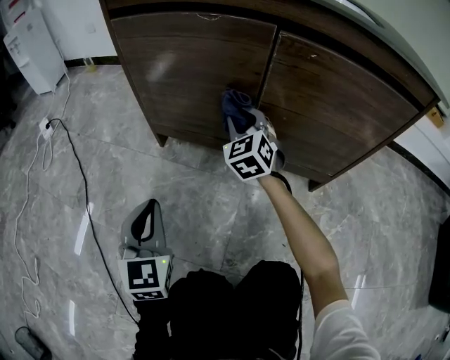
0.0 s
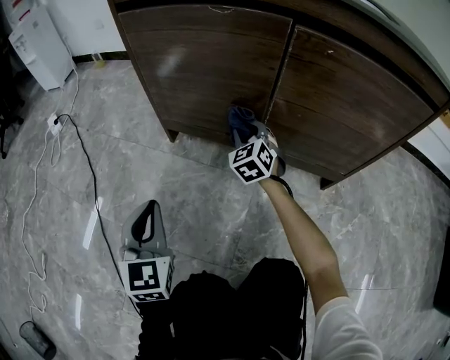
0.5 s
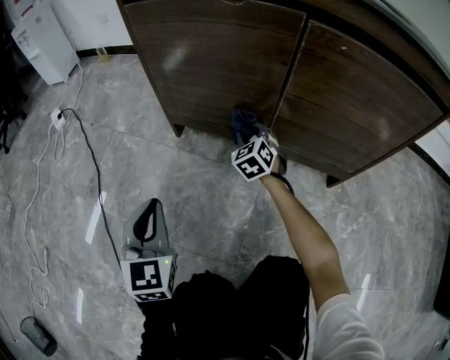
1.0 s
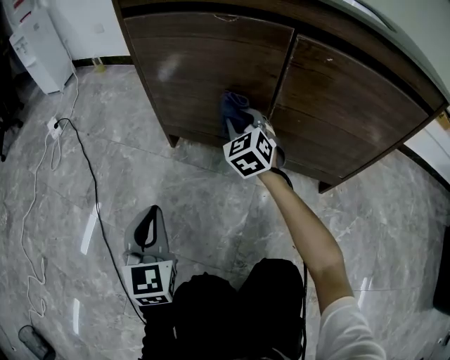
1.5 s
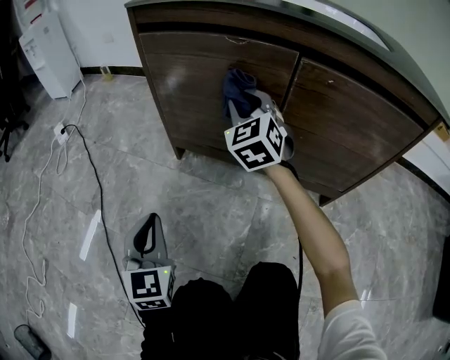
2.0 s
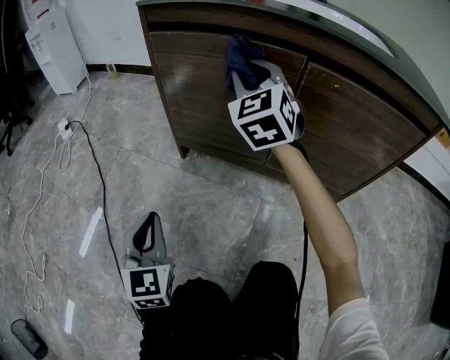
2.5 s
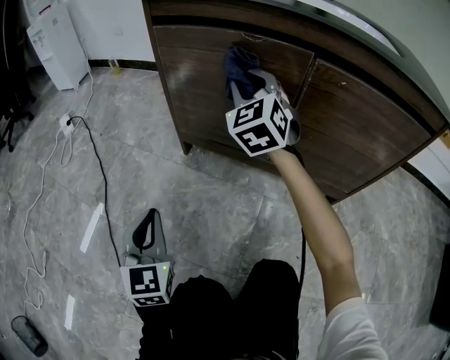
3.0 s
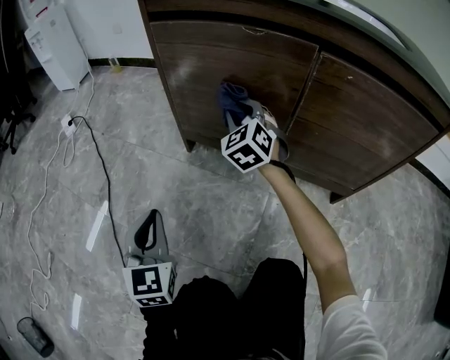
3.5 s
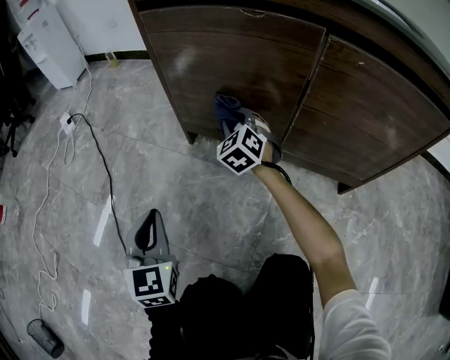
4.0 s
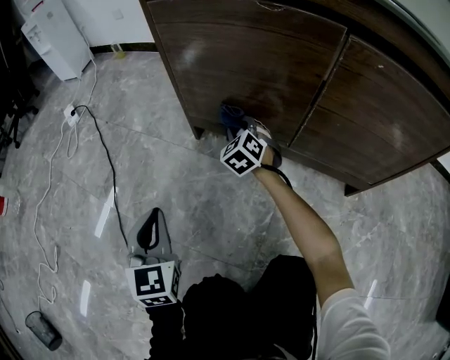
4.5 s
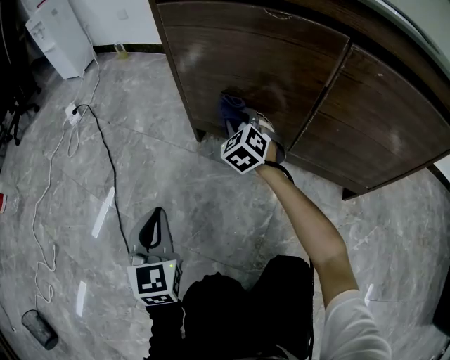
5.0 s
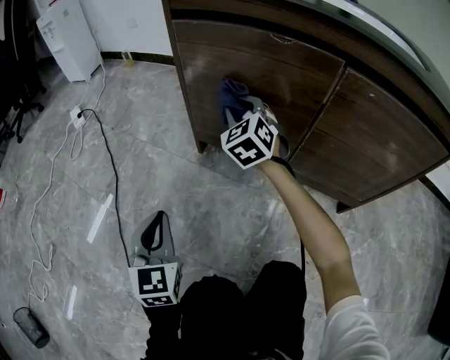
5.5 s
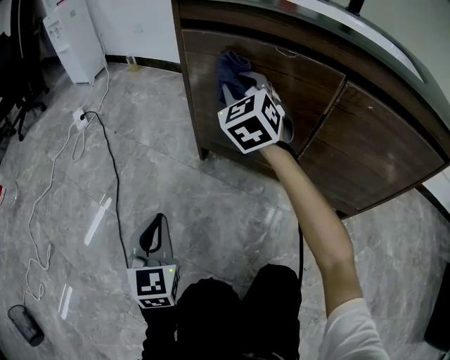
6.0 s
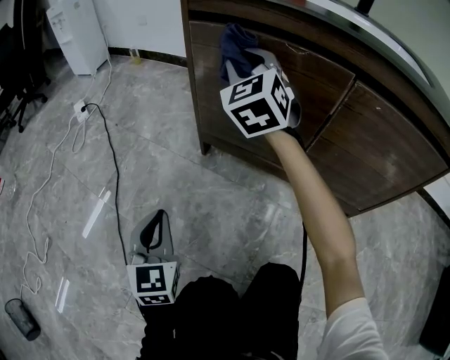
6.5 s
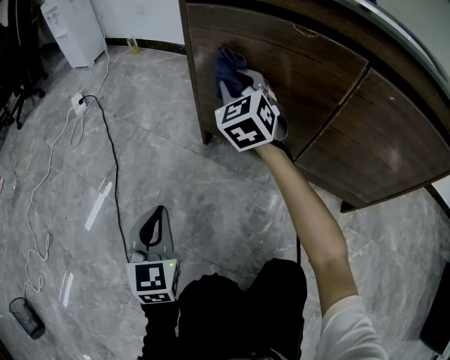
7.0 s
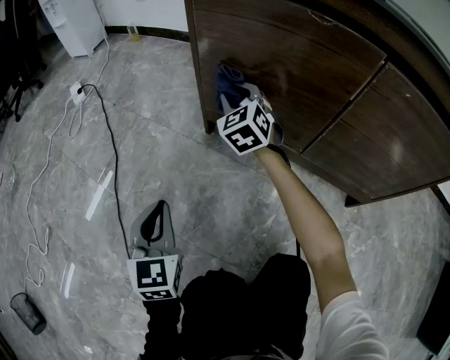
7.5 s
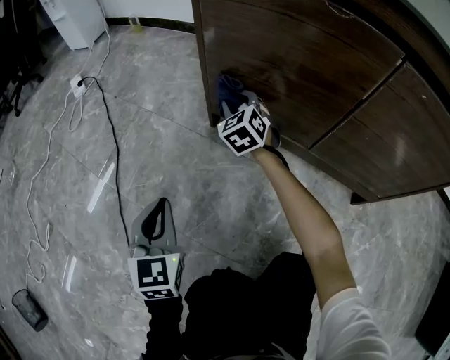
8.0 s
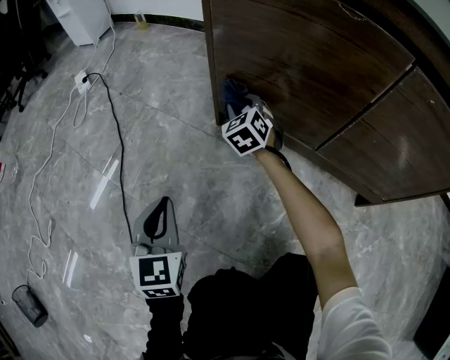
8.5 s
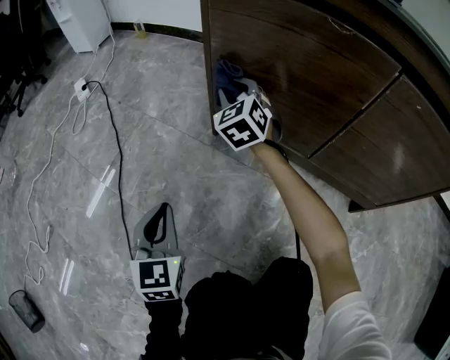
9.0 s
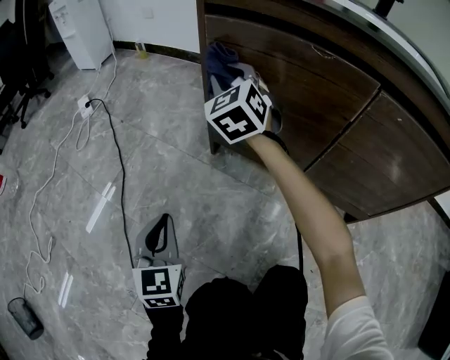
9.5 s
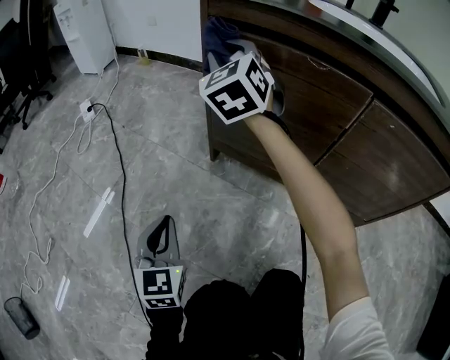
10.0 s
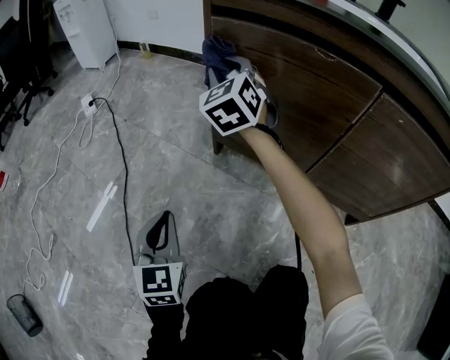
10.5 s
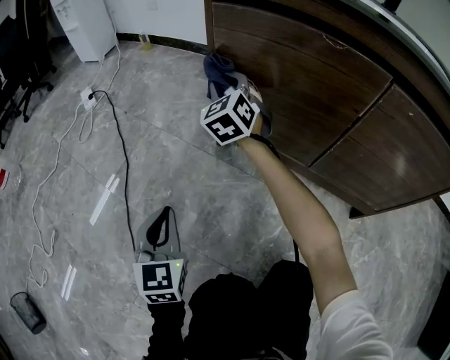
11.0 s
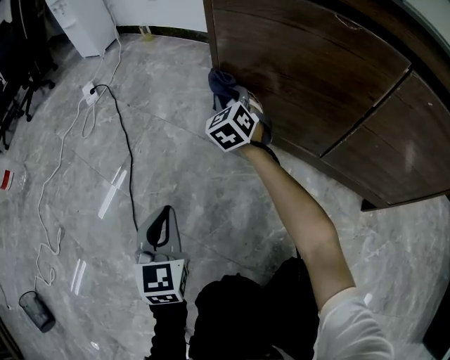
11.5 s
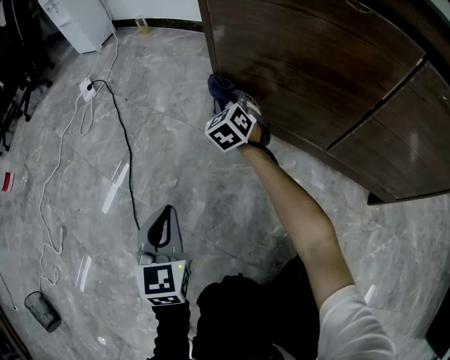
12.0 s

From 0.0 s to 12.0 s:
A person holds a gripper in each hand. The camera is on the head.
From 0.0 s to 2.0 s: The right gripper shifts approximately 15 cm upward and to the left, while the left gripper shifts about 5 cm to the left.
From 2.0 s to 4.0 s: The right gripper heads downward, covering about 20 cm.
From 4.0 s to 6.0 s: The right gripper travels upward by roughly 20 cm.
From 6.0 s to 8.0 s: The left gripper is displaced downward by some 5 cm. Meanwhile the right gripper goes approximately 25 cm downward.
From 8.0 s to 10.0 s: The right gripper moves upward, about 30 cm, and rotates approximately 20 degrees.
From 10.0 s to 12.0 s: The left gripper ends up approximately 5 cm from where it was, while the right gripper goes approximately 35 cm downward, and swivels some 20 degrees.

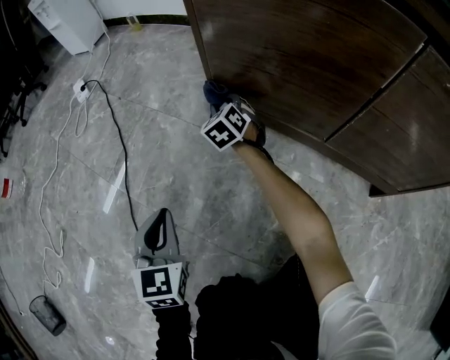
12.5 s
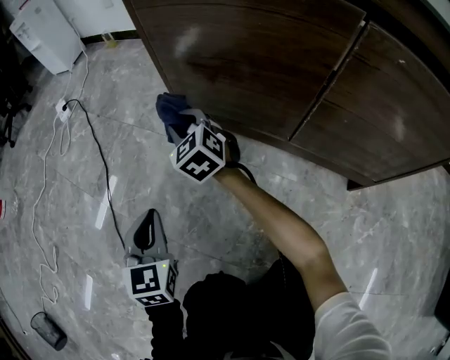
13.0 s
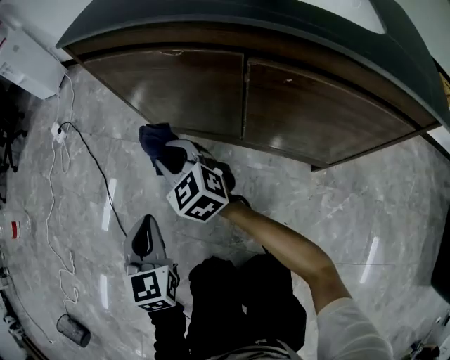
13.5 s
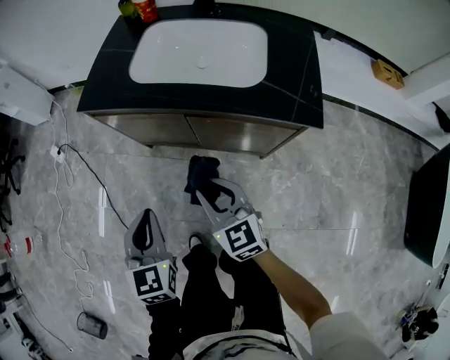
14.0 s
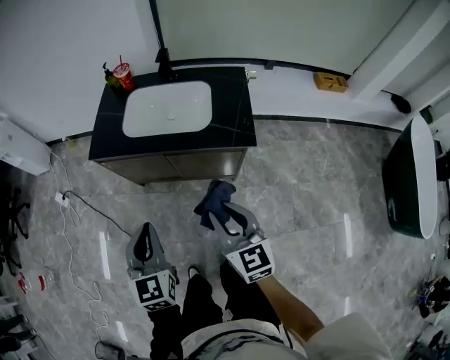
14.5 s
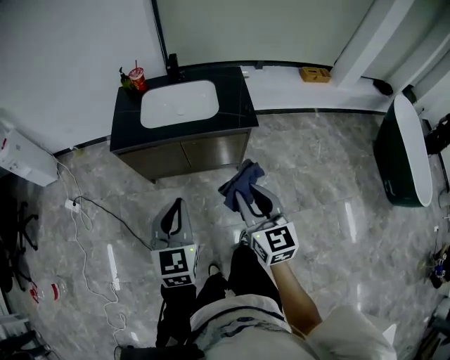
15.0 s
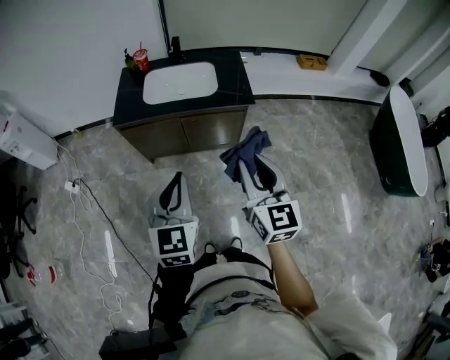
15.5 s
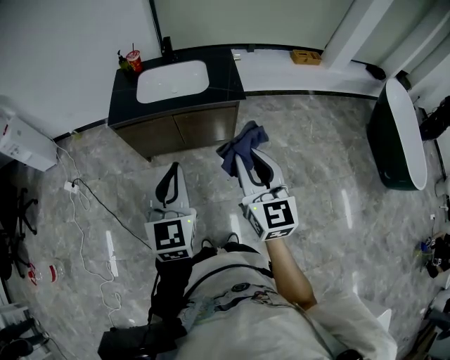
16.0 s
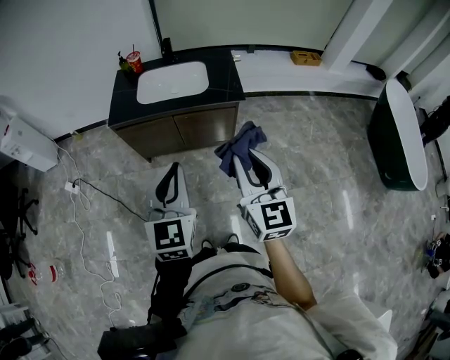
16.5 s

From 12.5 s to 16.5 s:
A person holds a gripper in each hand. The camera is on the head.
From 12.5 s to 14.5 s: Both grippers move upward, about 70 cm. The left gripper swivels some 20 degrees. The right gripper rotates some 40 degrees.
From 14.5 s to 16.5 s: Both grippers travel together upward and backward, roughly 25 cm. The left gripper turns by roughly 20 degrees, while the right gripper changes its angle by approximately 20 degrees.

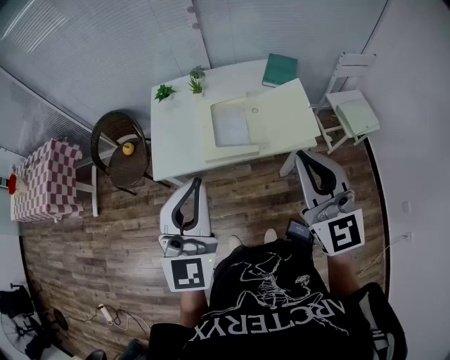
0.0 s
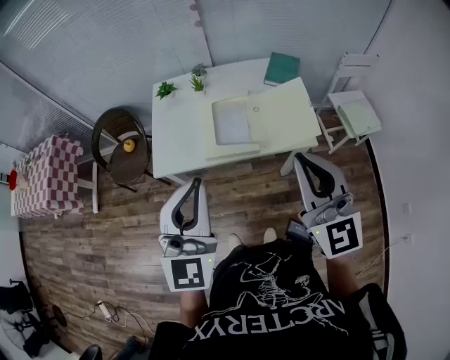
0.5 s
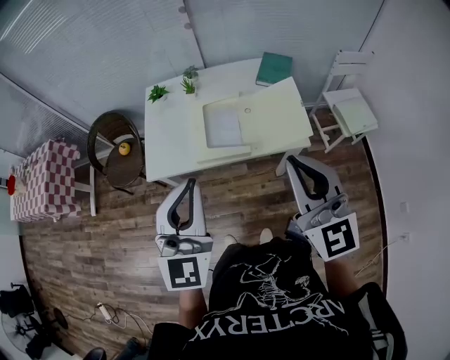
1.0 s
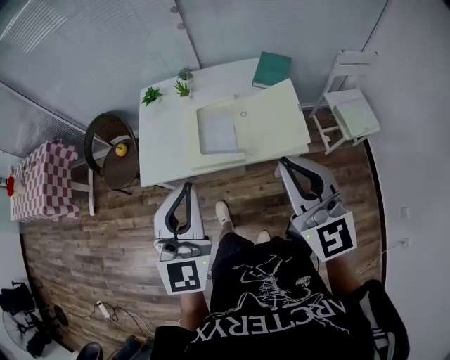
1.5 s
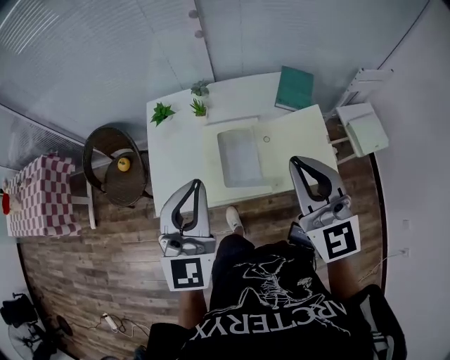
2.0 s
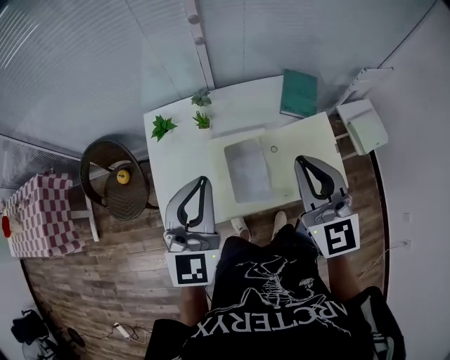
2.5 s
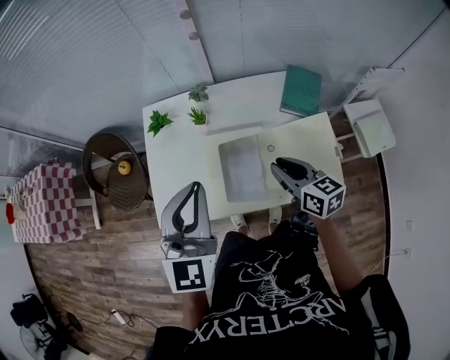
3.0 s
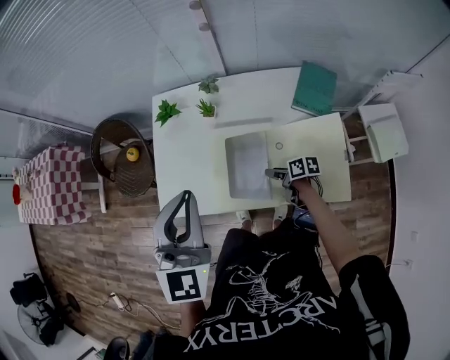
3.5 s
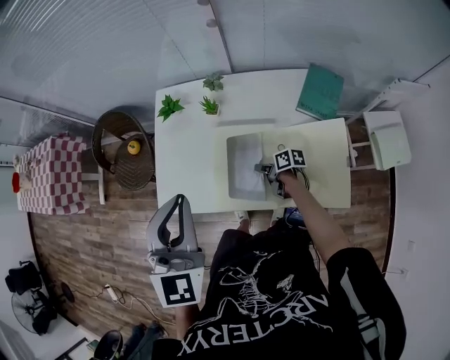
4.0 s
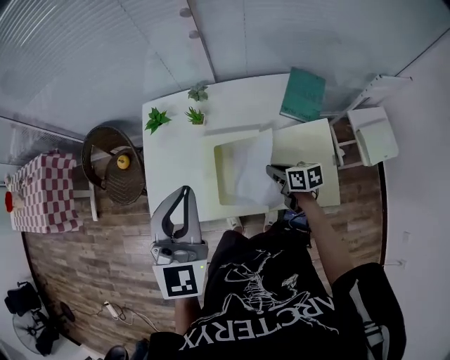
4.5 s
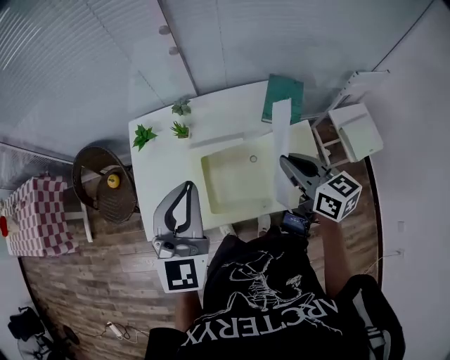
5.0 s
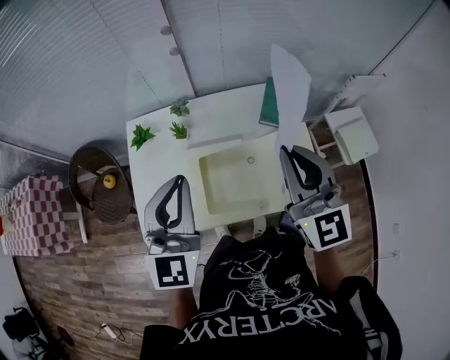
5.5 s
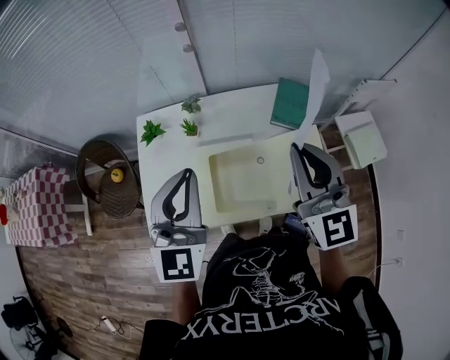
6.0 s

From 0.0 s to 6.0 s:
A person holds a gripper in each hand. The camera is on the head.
From 0.0 s to 2.0 s: The grippers both shift forward by roughly 20 cm.
From 2.0 s to 4.0 s: The left gripper shifts by approximately 5 cm. The right gripper moves downward, some 50 cm, points its fingers some 30 degrees further downward, and opens, then closes once more.
From 4.0 s to 6.0 s: The right gripper goes roughly 50 cm upward, and tilts its fingers approximately 40 degrees upward; the left gripper moves approximately 10 cm.

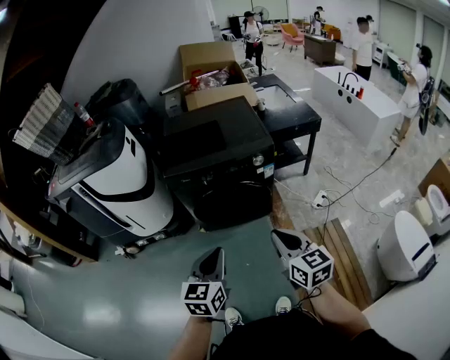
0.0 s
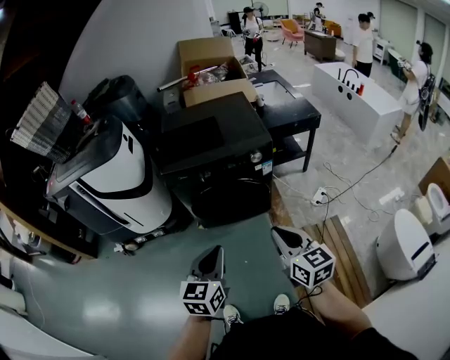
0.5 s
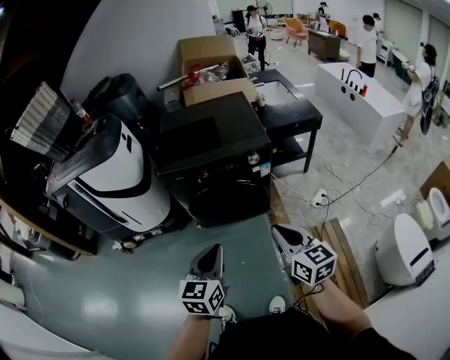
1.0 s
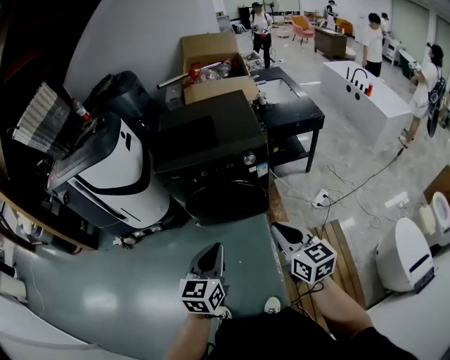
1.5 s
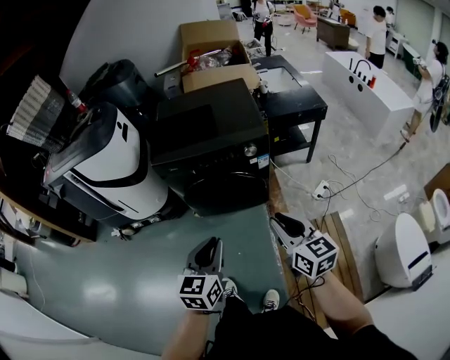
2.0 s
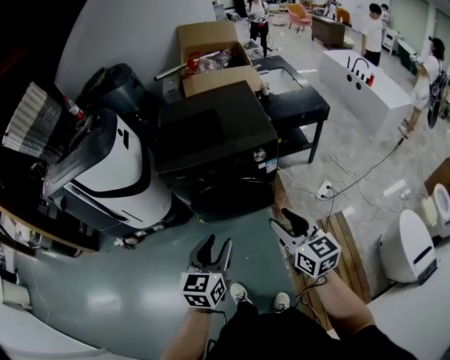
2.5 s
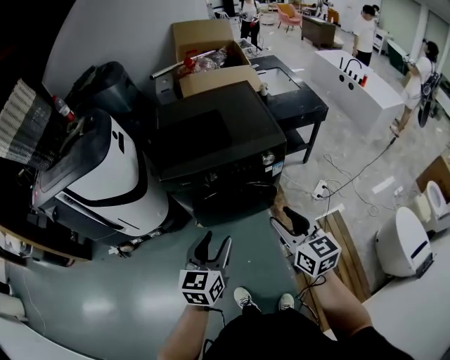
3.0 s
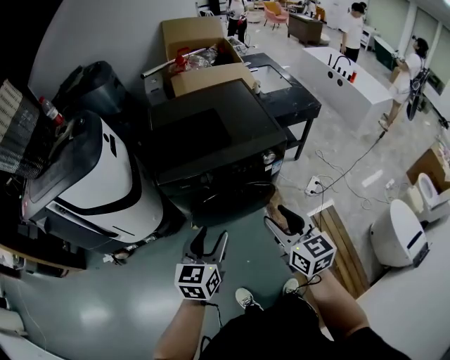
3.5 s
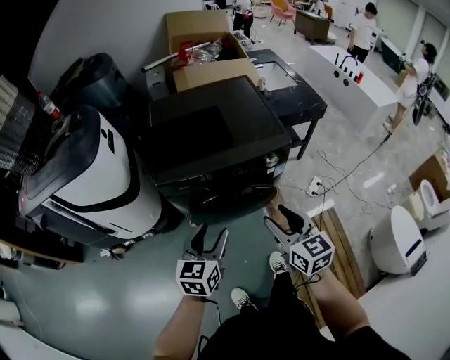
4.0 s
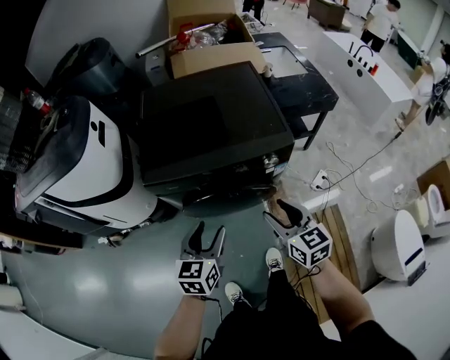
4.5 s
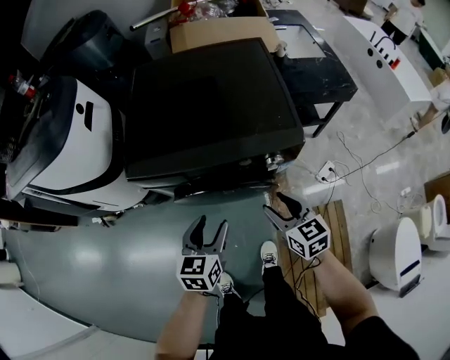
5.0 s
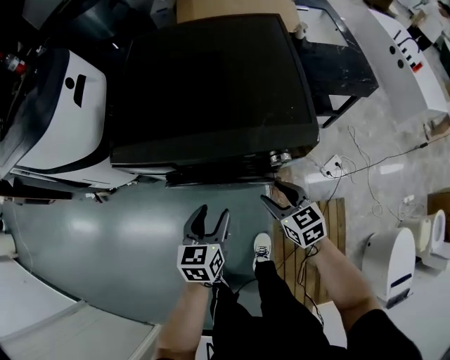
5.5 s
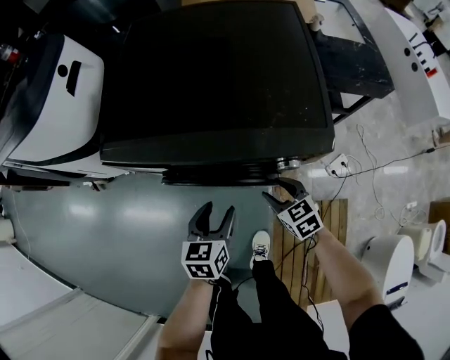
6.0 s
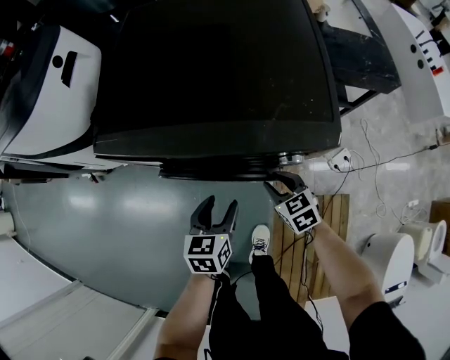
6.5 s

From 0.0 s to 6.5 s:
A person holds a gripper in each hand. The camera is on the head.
From 0.0 s to 2.0 s: The left gripper heads to the right, covering some 10 cm; the right gripper heads to the right and forward, covering roughly 10 cm.
From 2.0 s to 4.5 s: The grippers both shift forward, downward and to the left by about 25 cm. The left gripper opens. The right gripper opens its fingers.
From 4.5 s to 6.5 s: The left gripper moves downward, to the right and forward, about 25 cm, and turns by about 20 degrees; the right gripper heads downward and forward, covering some 35 cm, and changes its angle by some 30 degrees.
